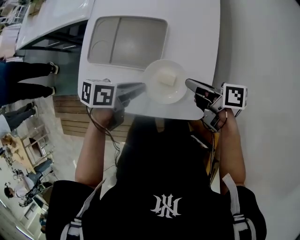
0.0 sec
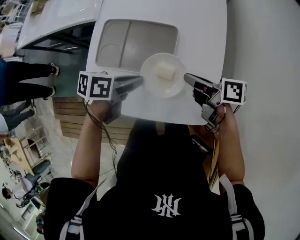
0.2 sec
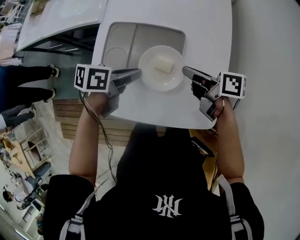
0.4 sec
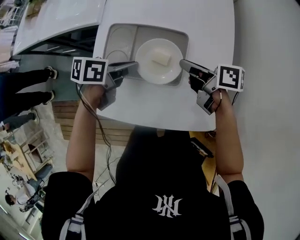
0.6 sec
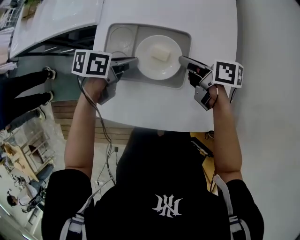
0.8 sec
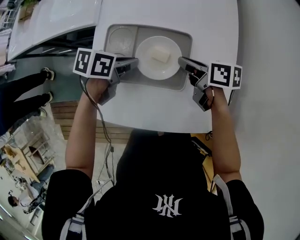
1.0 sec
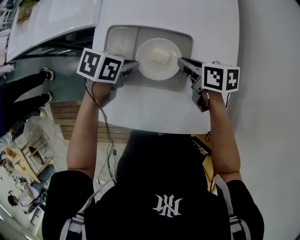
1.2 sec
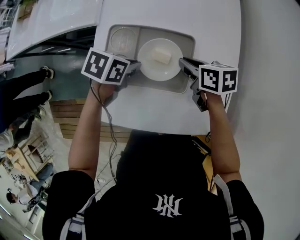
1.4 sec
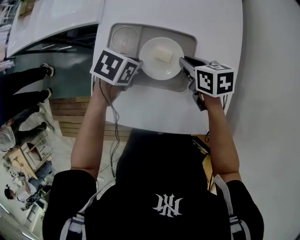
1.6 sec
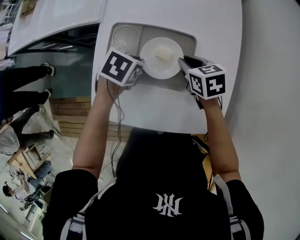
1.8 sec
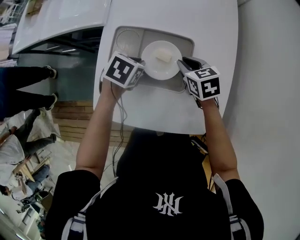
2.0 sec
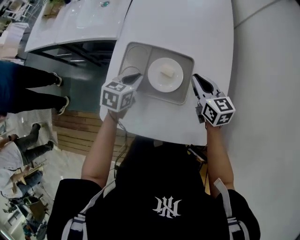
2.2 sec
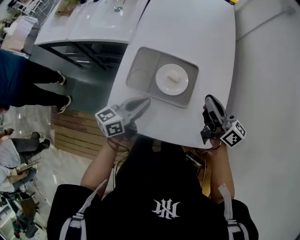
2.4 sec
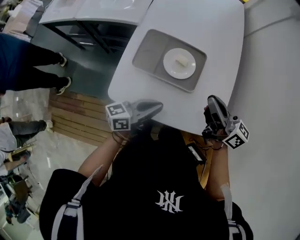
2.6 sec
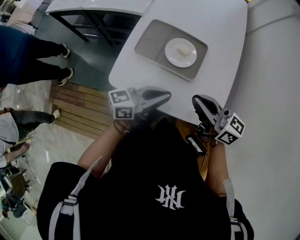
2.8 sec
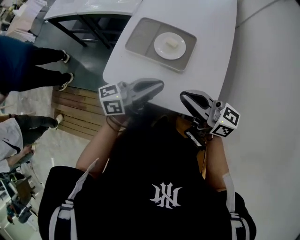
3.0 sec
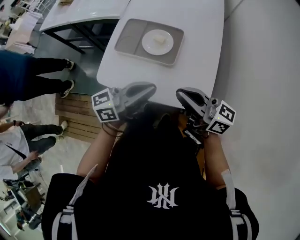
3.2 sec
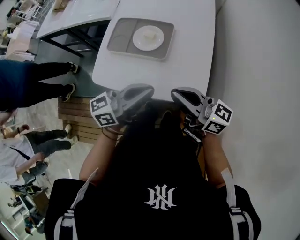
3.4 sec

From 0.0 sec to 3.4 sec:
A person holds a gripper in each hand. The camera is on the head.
From 0.0 sec to 1.6 sec: The left gripper ends up roughly 15 cm from where it was, and turns by some 40 degrees; the right gripper moves about 10 cm, and swivels some 40 degrees.
From 1.6 sec to 3.4 sec: The right gripper shifts approximately 40 cm backward and upward, and tilts its fingers approximately 60 degrees upward. The left gripper goes about 40 cm backward, upward and to the right, and points its fingers roughly 70 degrees further upward.

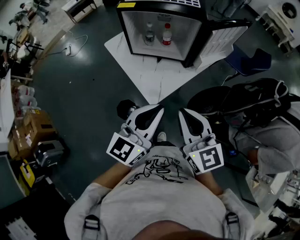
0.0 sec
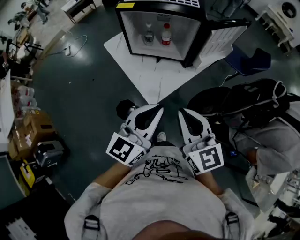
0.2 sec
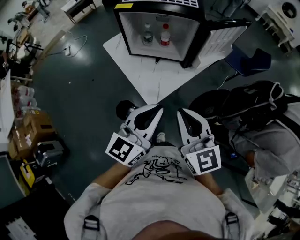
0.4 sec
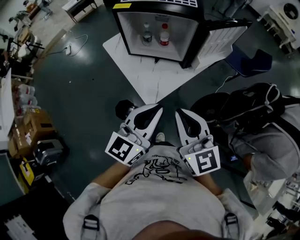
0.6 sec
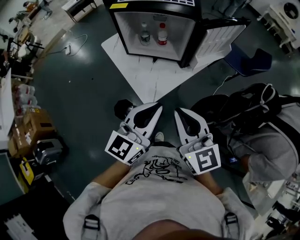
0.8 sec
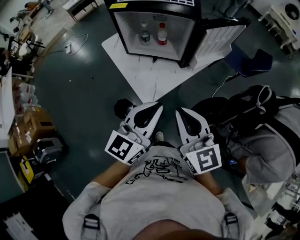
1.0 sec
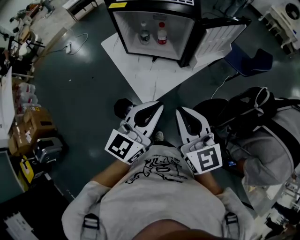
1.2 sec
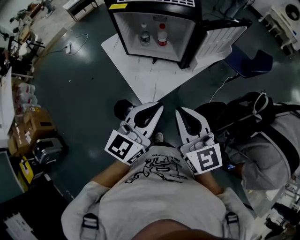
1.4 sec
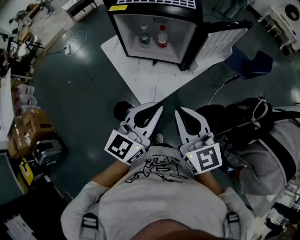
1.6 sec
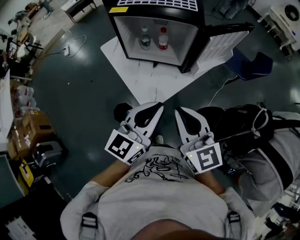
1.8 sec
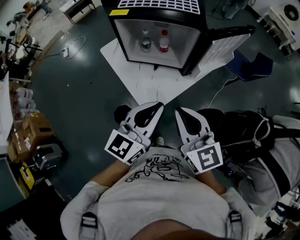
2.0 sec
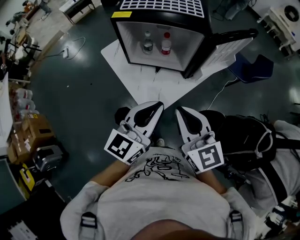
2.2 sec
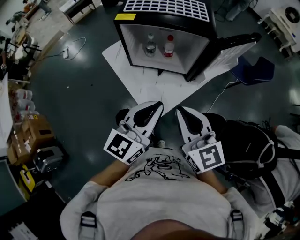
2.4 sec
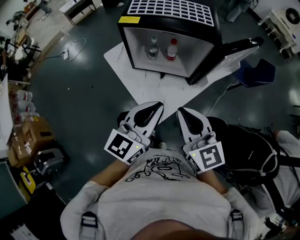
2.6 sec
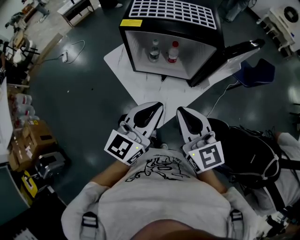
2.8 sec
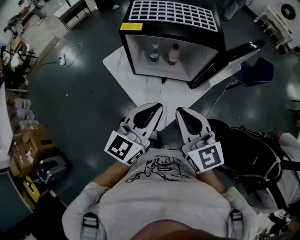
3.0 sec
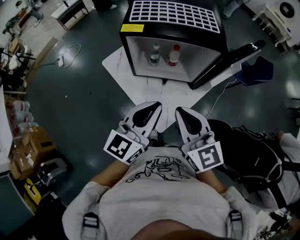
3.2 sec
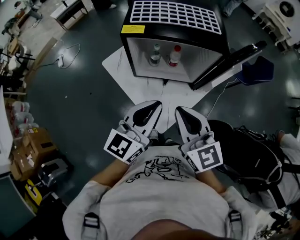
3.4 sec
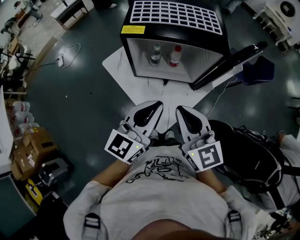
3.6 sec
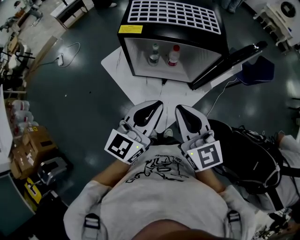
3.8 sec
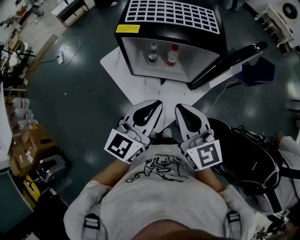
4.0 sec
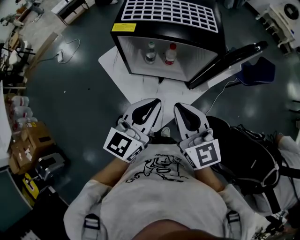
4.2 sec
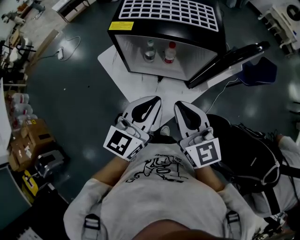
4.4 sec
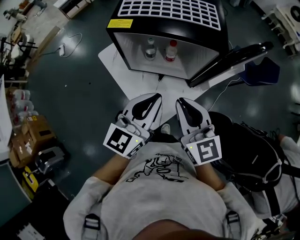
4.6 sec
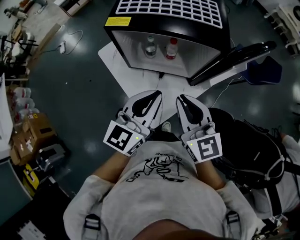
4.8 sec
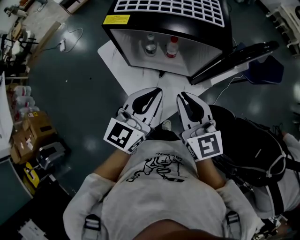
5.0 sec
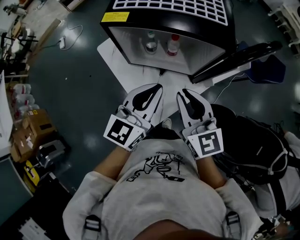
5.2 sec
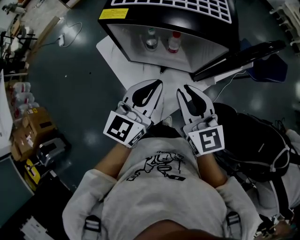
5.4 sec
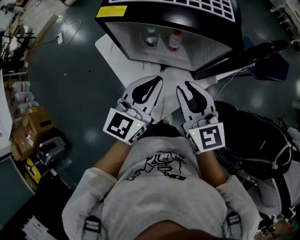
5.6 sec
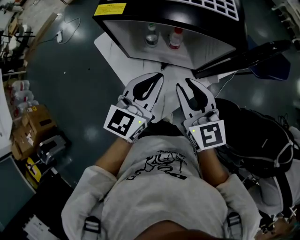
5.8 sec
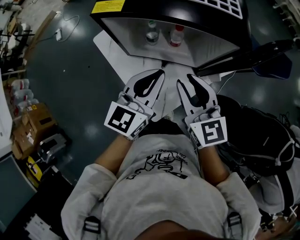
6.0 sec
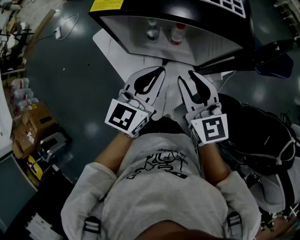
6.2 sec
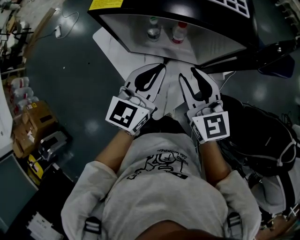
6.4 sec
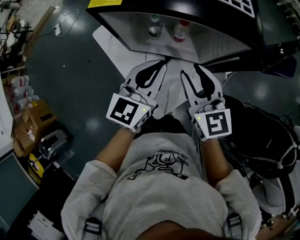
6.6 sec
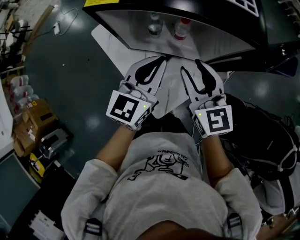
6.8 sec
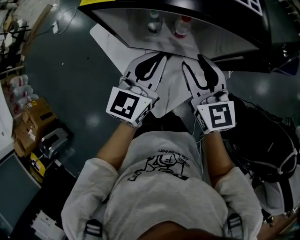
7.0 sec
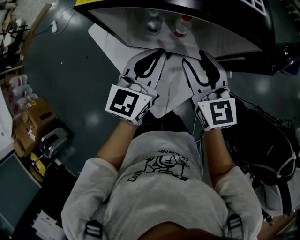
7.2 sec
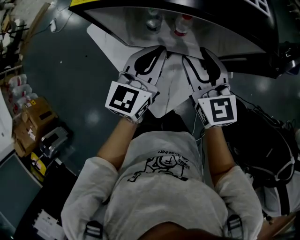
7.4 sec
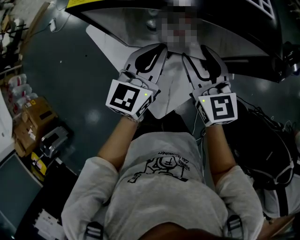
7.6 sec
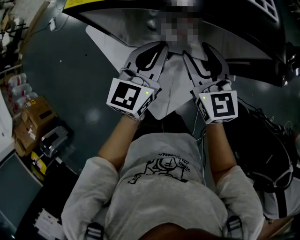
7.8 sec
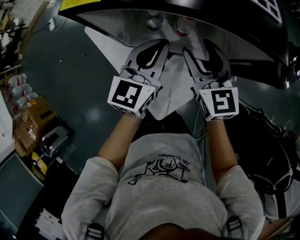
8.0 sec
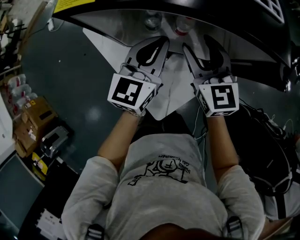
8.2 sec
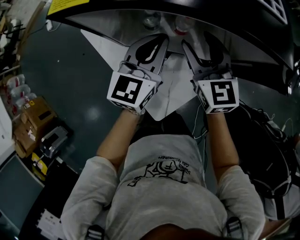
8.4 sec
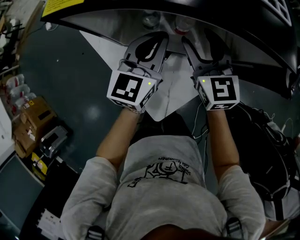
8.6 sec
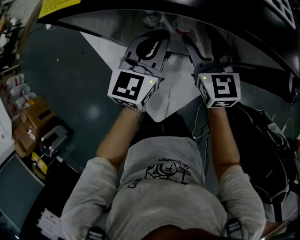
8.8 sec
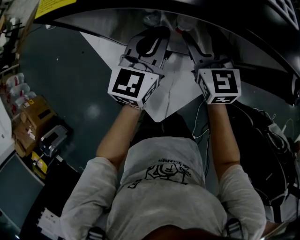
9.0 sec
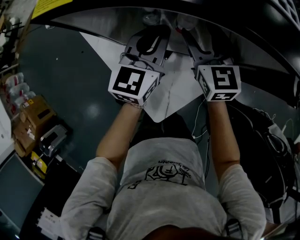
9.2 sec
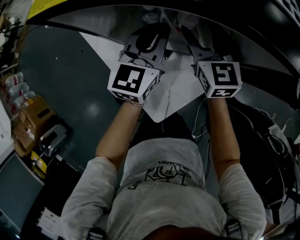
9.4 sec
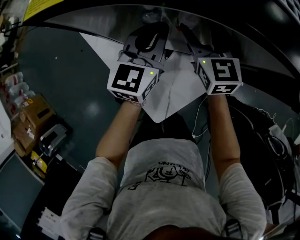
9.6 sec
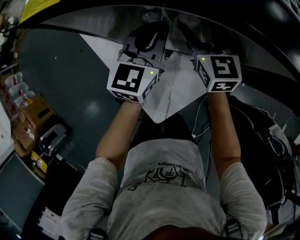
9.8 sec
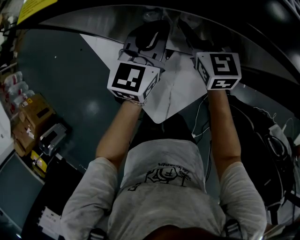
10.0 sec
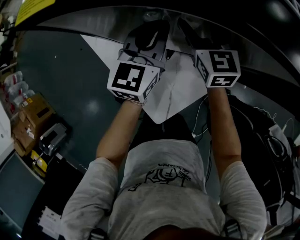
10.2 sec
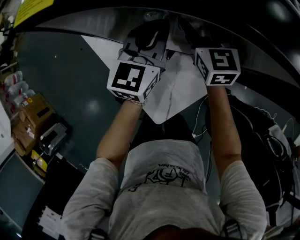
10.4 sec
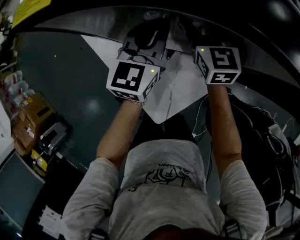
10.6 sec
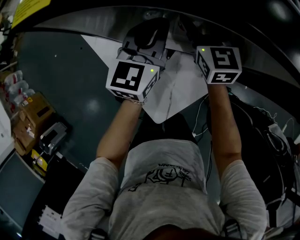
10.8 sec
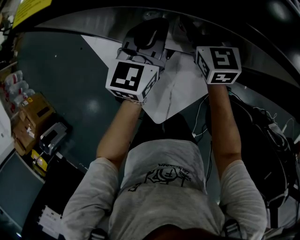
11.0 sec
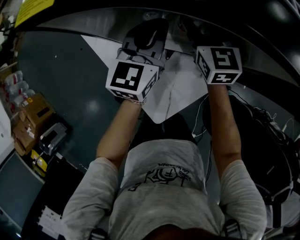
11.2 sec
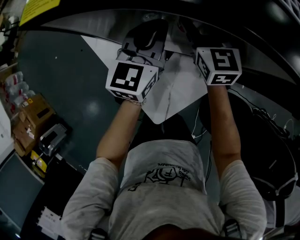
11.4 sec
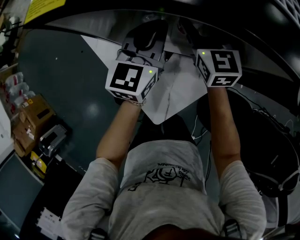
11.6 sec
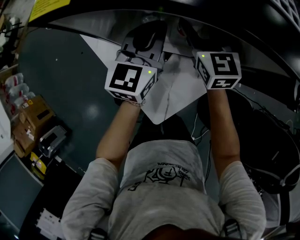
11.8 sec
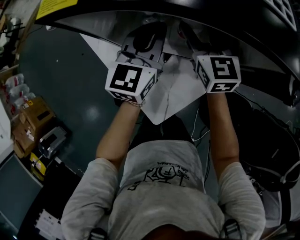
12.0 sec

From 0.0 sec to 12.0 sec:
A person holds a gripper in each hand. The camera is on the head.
From 0.0 sec to 1.6 sec: The left gripper ends up roughly 5 cm from where it was, while the right gripper moves approximately 5 cm.
From 1.6 sec to 3.0 sec: Both grippers move forward and to the left, approximately 15 cm.
From 3.0 sec to 4.4 sec: Both grippers move forward, approximately 5 cm.
From 4.4 sec to 6.0 sec: Both grippers move forward and downward, approximately 10 cm.
From 6.0 sec to 7.6 sec: The two grippers go approximately 10 cm forward and downward.
From 7.6 sec to 9.0 sec: The two grippers go some 10 cm forward and downward.
From 9.0 sec to 10.4 sec: The right gripper moves approximately 5 cm.
From 10.4 sec to 12.0 sec: The grippers make only small movements.

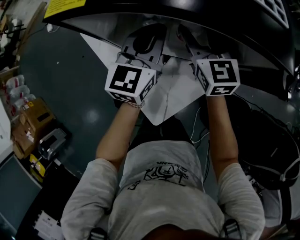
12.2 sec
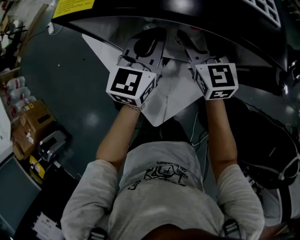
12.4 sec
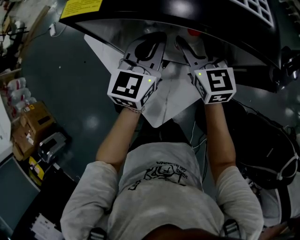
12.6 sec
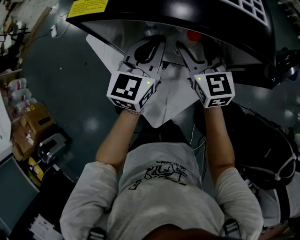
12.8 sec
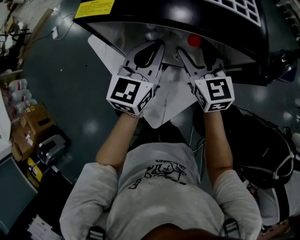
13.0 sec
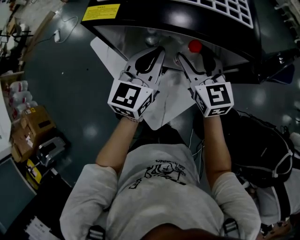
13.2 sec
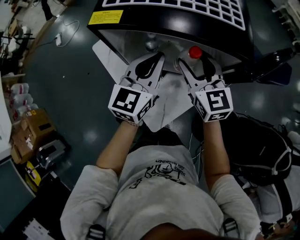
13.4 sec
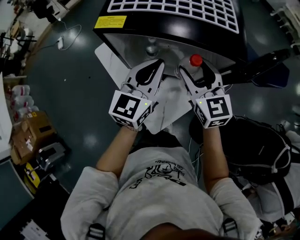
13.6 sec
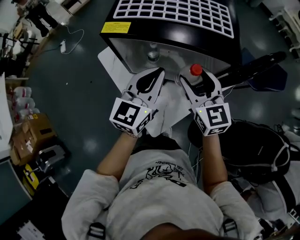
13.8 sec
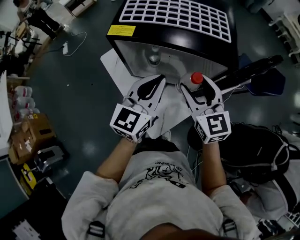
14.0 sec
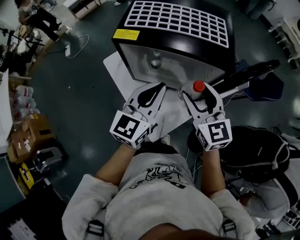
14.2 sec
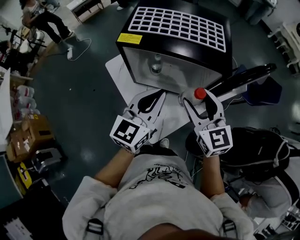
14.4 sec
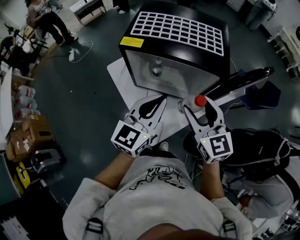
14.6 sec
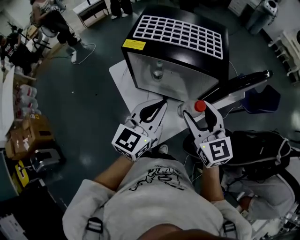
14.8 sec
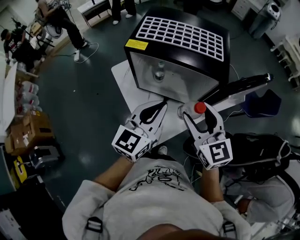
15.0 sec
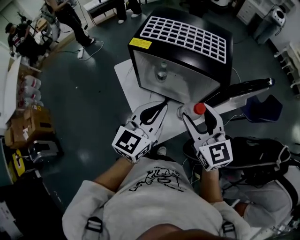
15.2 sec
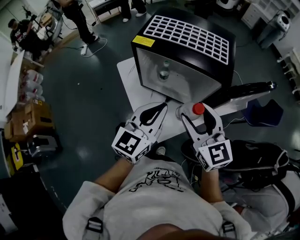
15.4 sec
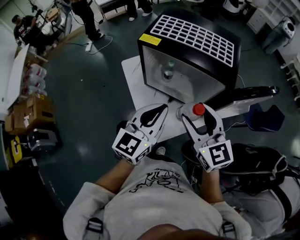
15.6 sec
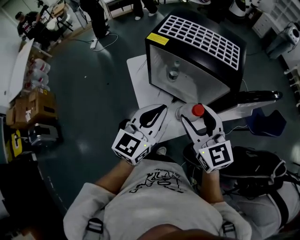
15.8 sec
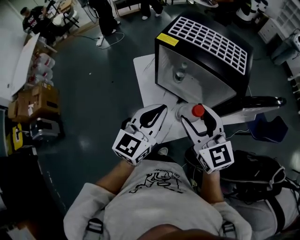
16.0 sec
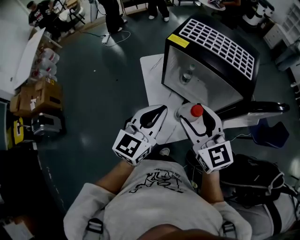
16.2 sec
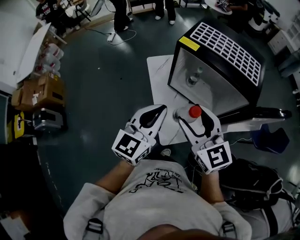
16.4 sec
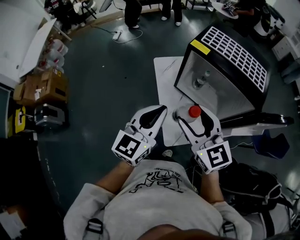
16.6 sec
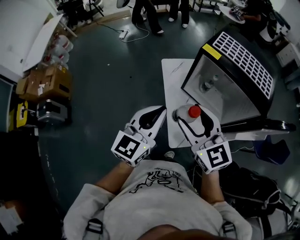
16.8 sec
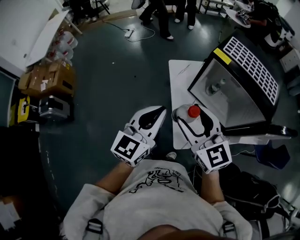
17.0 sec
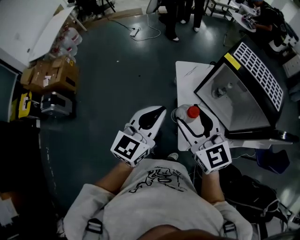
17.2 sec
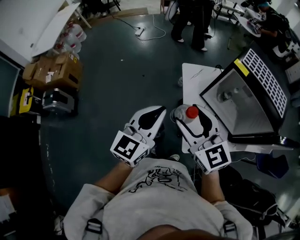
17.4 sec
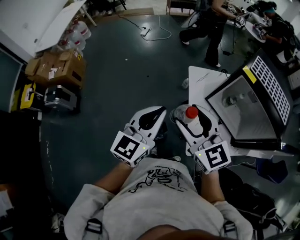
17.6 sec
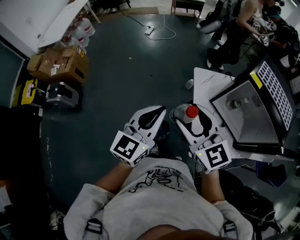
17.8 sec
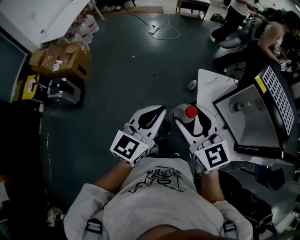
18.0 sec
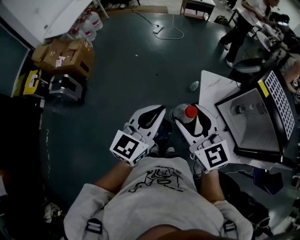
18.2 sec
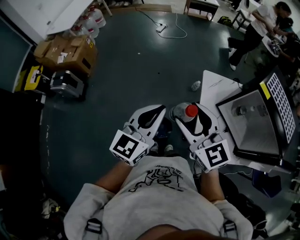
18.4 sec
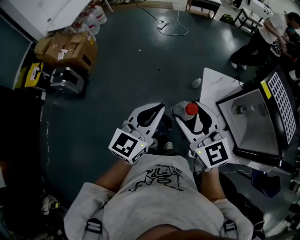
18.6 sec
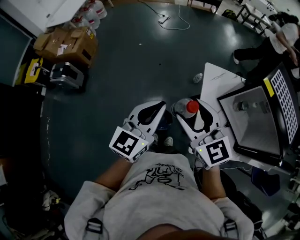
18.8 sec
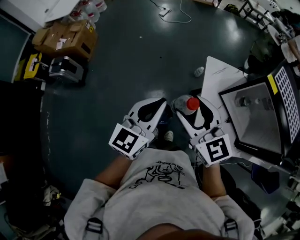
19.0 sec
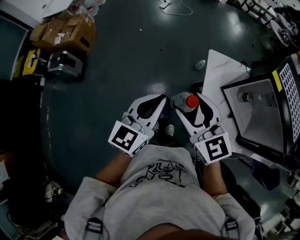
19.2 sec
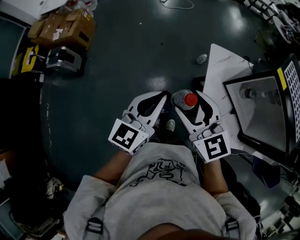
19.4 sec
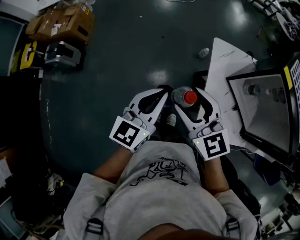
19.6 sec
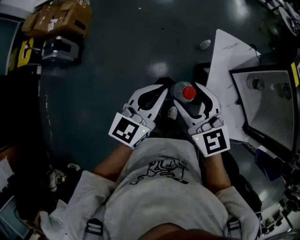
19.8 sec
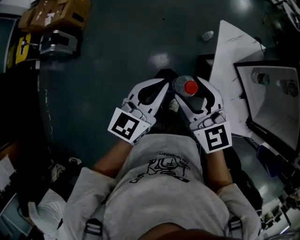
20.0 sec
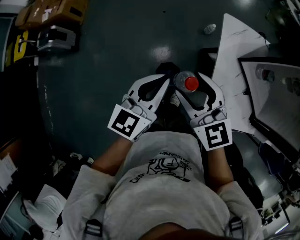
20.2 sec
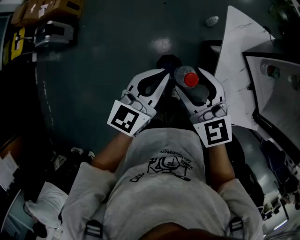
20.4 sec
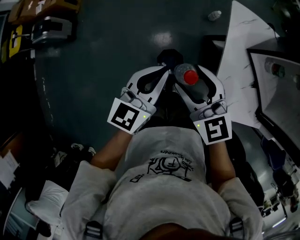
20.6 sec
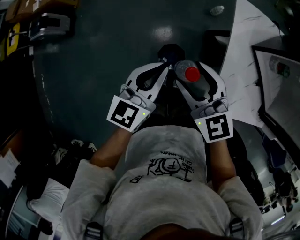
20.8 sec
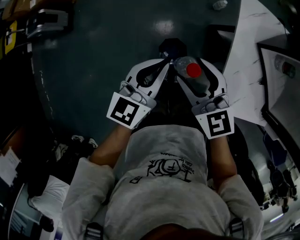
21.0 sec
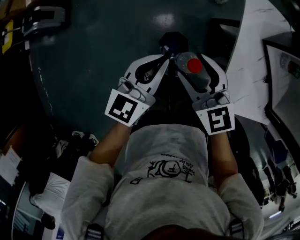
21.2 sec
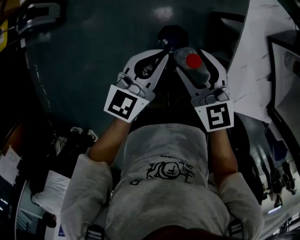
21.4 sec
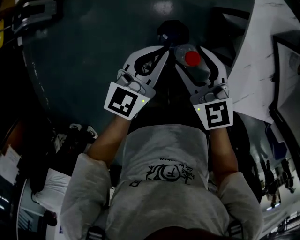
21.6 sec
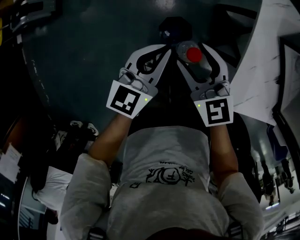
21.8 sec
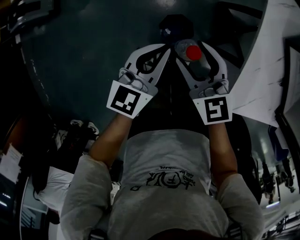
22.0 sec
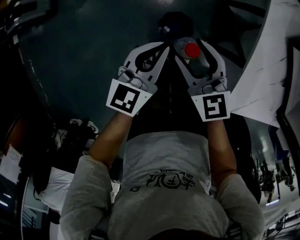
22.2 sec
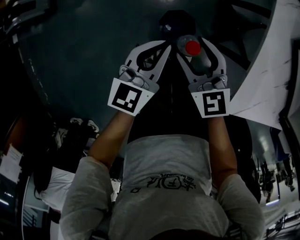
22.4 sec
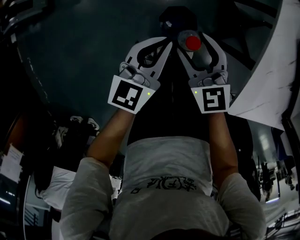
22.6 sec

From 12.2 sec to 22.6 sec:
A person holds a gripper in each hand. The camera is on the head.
From 12.2 sec to 13.6 sec: The left gripper heads upward and backward, covering some 15 cm. Meanwhile the right gripper moves backward and upward, about 15 cm.
From 13.6 sec to 15.2 sec: The grippers both shift backward and upward by approximately 15 cm.
From 15.2 sec to 16.6 sec: The grippers both shift to the left by about 15 cm. The right gripper rotates about 20 degrees.
From 16.6 sec to 18.2 sec: Both grippers move to the left, roughly 25 cm.
From 18.2 sec to 19.6 sec: The two grippers go roughly 10 cm downward.
From 19.6 sec to 21.2 sec: Both grippers move downward, some 20 cm.
From 21.2 sec to 22.6 sec: Both grippers move downward, approximately 20 cm.
